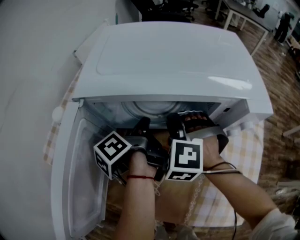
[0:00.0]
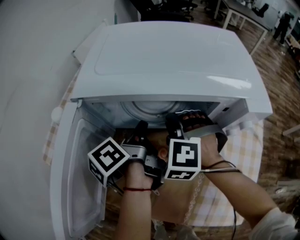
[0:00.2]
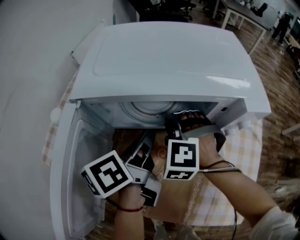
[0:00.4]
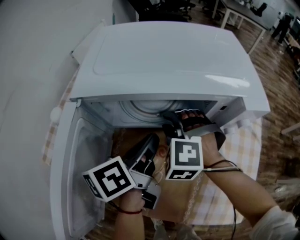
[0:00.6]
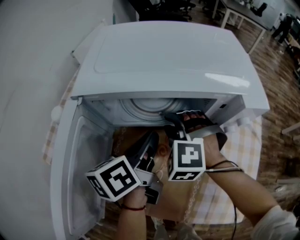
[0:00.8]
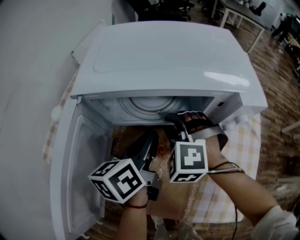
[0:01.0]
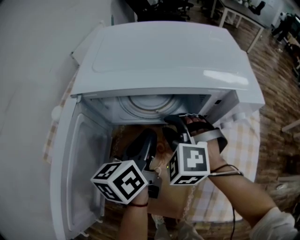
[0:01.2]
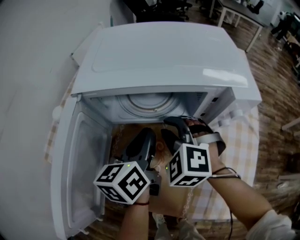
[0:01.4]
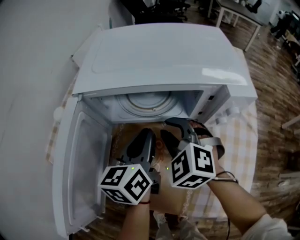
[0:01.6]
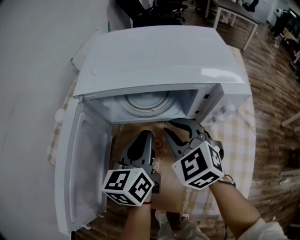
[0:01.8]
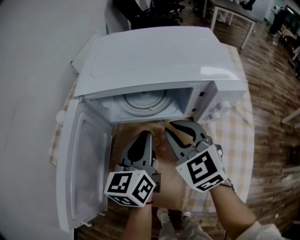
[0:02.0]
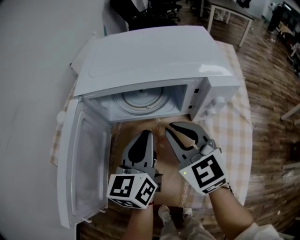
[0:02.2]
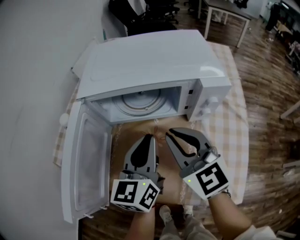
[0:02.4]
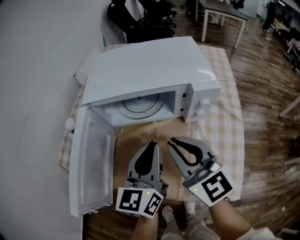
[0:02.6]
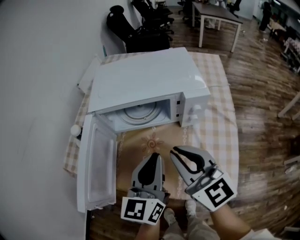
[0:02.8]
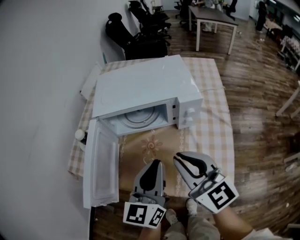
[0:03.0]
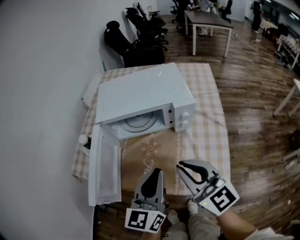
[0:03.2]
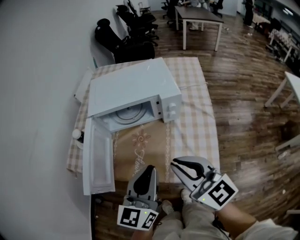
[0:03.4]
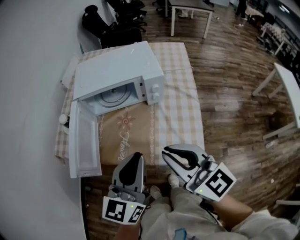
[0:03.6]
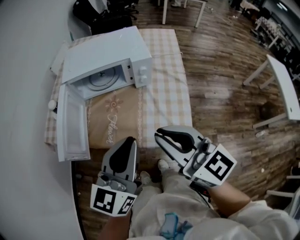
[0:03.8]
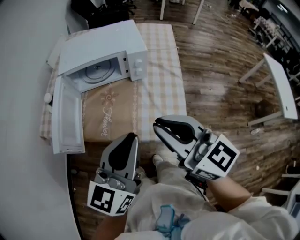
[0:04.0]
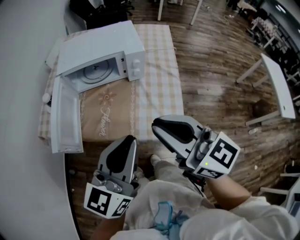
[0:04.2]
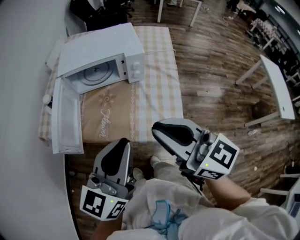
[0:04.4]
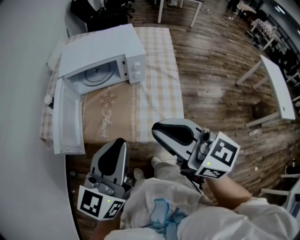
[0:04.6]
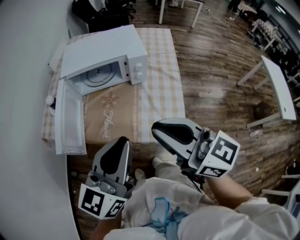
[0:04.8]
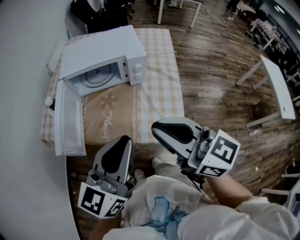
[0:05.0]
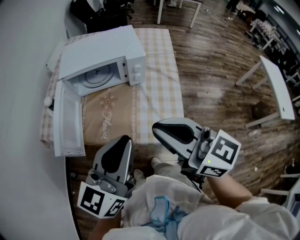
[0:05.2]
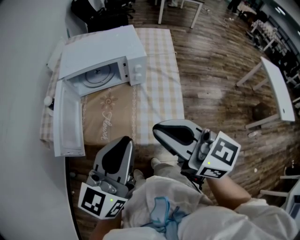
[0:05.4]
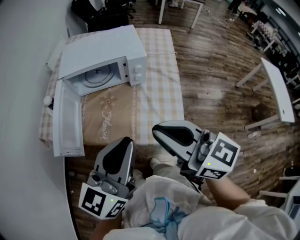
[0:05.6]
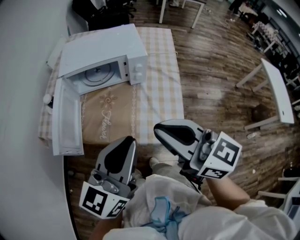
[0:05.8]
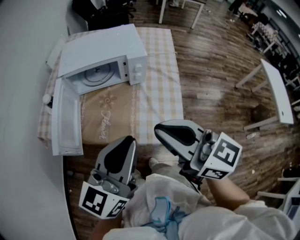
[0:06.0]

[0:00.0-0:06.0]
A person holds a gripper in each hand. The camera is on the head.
0:00.0 to 0:01.6: The right gripper shifts by approximately 5 cm, and changes its angle by some 30 degrees.
0:01.6 to 0:03.0: The right gripper travels upward by some 20 cm, and angles its fingers upward, by approximately 40 degrees.
0:03.0 to 0:04.4: The right gripper changes place by about 20 cm.

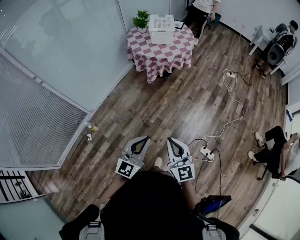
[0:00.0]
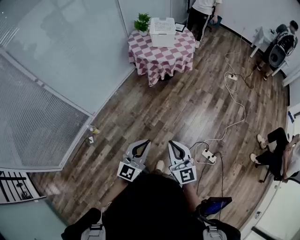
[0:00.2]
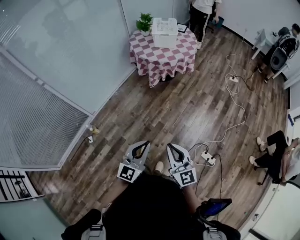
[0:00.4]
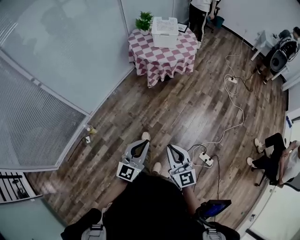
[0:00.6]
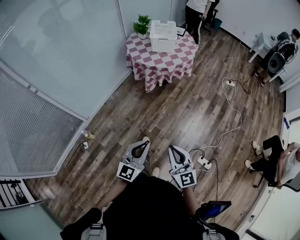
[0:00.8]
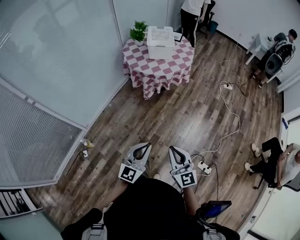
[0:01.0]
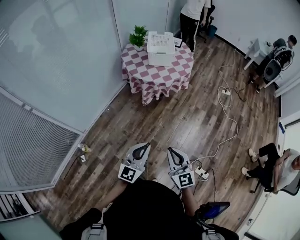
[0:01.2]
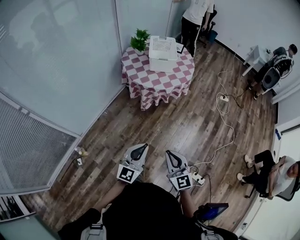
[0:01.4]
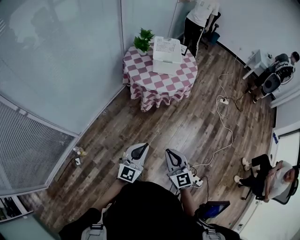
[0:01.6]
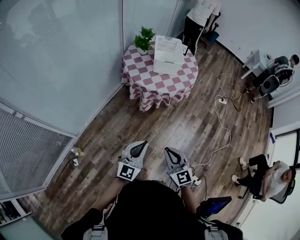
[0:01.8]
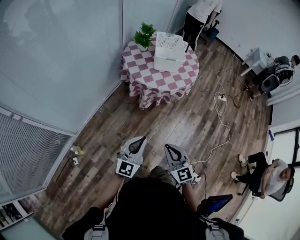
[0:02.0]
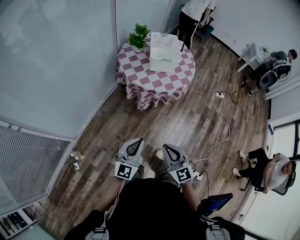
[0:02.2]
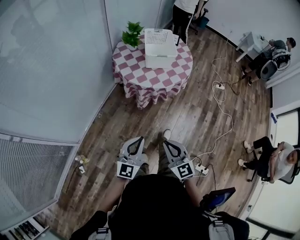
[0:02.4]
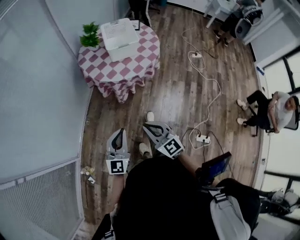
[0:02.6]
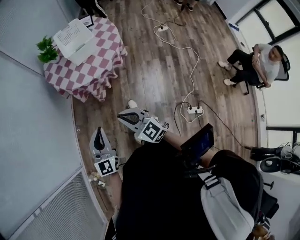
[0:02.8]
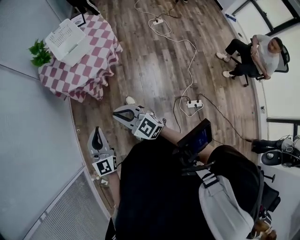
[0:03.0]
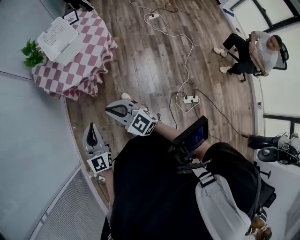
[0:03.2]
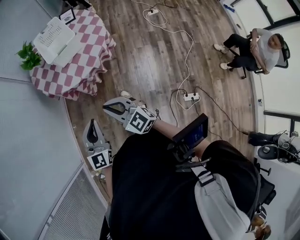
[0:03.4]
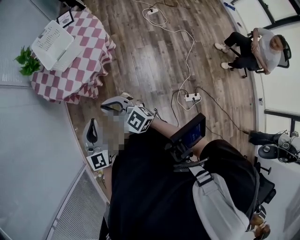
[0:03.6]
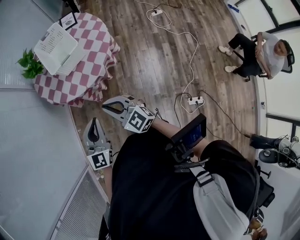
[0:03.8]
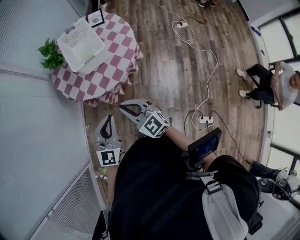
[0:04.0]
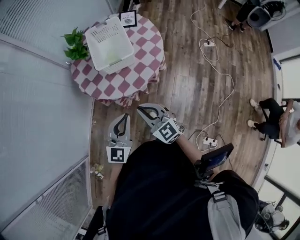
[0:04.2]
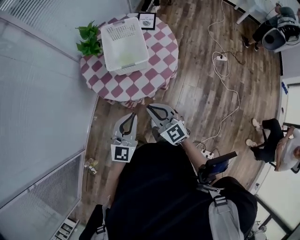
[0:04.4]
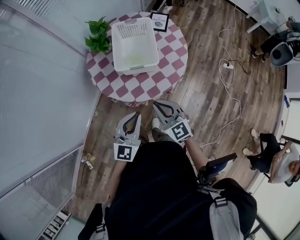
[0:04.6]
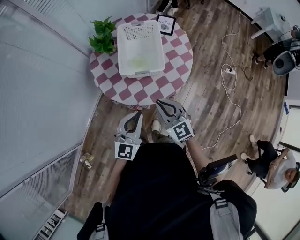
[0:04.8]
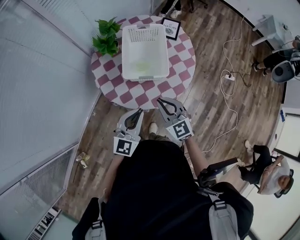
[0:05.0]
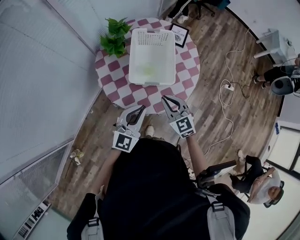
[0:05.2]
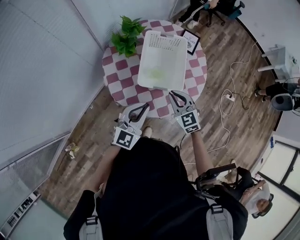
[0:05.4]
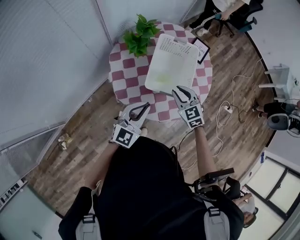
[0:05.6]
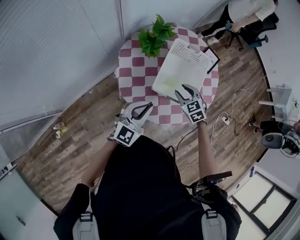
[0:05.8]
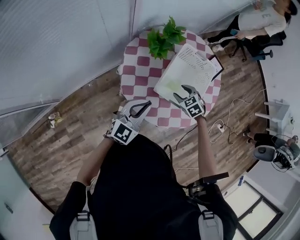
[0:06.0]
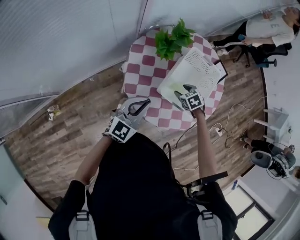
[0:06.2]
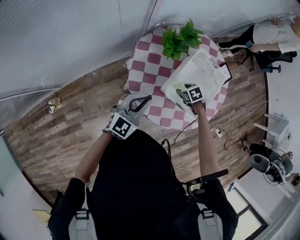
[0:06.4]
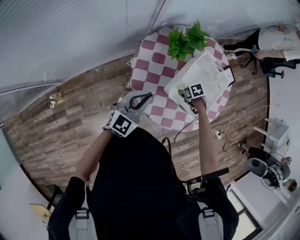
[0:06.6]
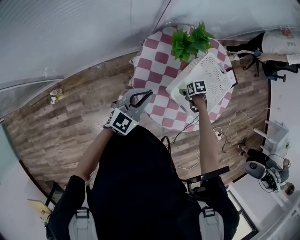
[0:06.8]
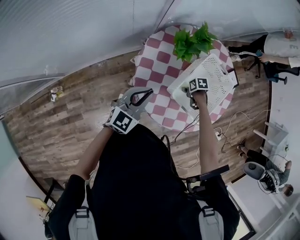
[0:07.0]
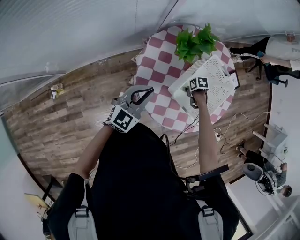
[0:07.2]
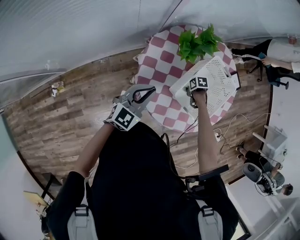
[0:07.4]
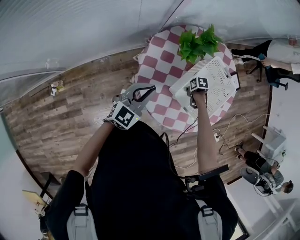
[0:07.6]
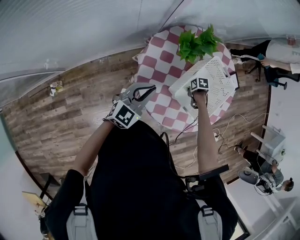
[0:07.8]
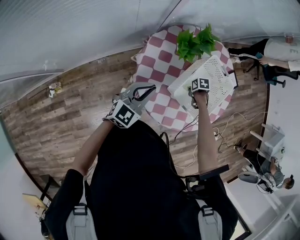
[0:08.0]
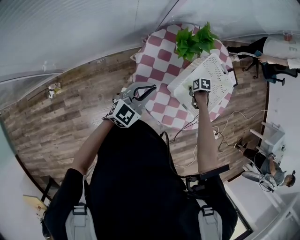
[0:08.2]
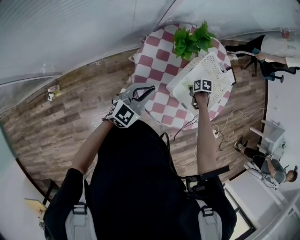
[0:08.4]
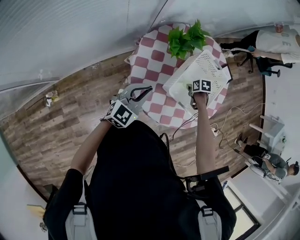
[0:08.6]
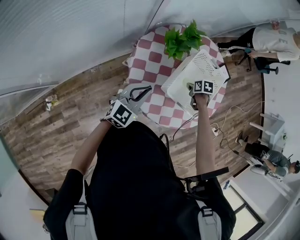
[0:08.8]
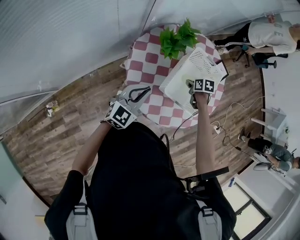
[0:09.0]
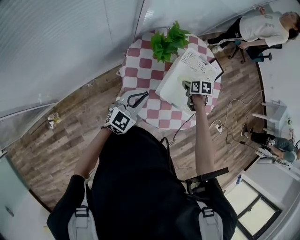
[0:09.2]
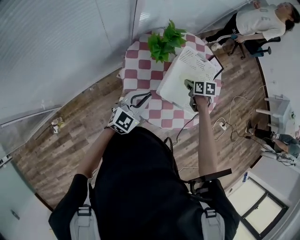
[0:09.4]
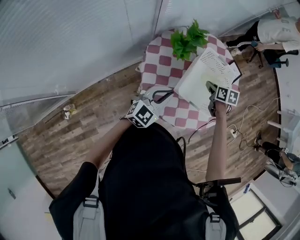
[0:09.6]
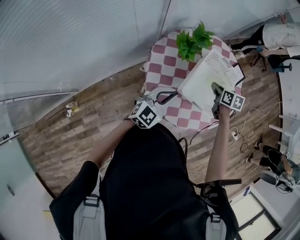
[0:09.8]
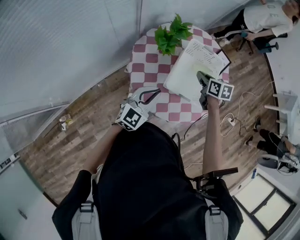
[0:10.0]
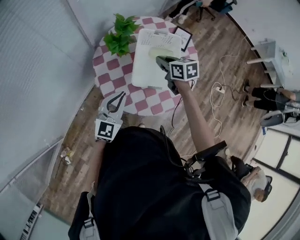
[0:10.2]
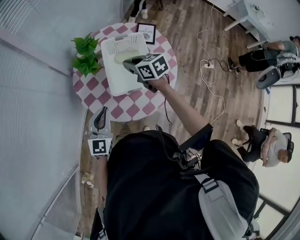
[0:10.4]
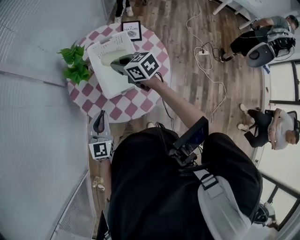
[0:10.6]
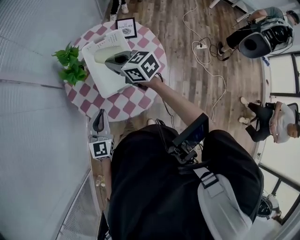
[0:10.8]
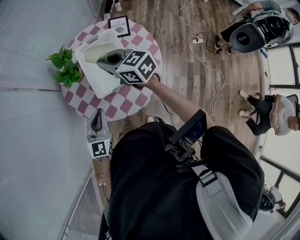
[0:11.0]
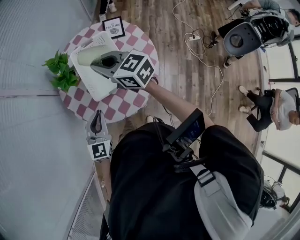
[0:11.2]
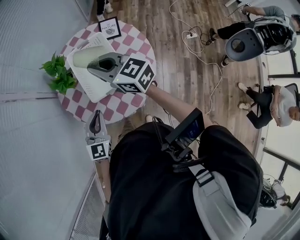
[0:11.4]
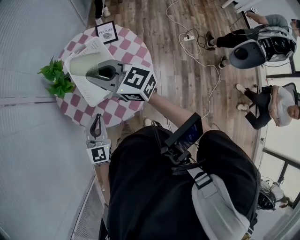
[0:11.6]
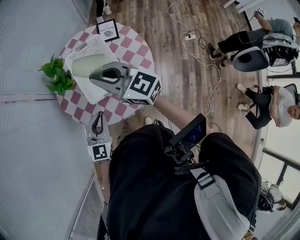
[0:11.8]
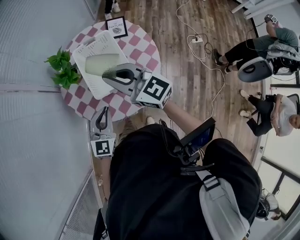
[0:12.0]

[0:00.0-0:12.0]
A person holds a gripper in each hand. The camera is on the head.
0:00.0 to 0:01.6: Both grippers travel together forward, approximately 30 cm.
0:01.6 to 0:03.0: The two grippers go about 15 cm forward.
0:03.0 to 0:04.4: The left gripper heads forward and to the right, covering roughly 30 cm; the right gripper is displaced forward by roughly 30 cm.
0:04.4 to 0:06.0: The right gripper moves forward and downward, approximately 35 cm, angles its fingers downward, by some 50 degrees, and opens its fingers. The left gripper travels forward and to the left by roughly 25 cm.
0:06.0 to 0:07.6: The right gripper travels downward by approximately 15 cm, changes its angle by about 50 degrees, and closes. The left gripper ends up about 10 cm from where it was.
0:07.6 to 0:09.0: The right gripper goes some 10 cm upward, and changes its angle by about 30 degrees.
0:09.0 to 0:10.4: The right gripper moves upward, approximately 20 cm, and tips its fingers upward by about 30 degrees. The left gripper is displaced to the right by approximately 5 cm.
0:10.4 to 0:12.0: The right gripper moves upward and backward, approximately 20 cm, and tips its fingers upward by about 30 degrees, while the left gripper goes about 10 cm to the right.

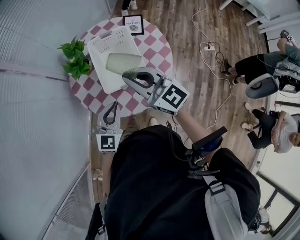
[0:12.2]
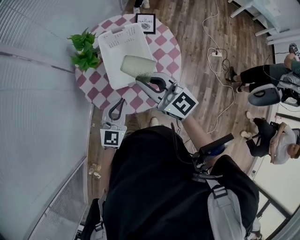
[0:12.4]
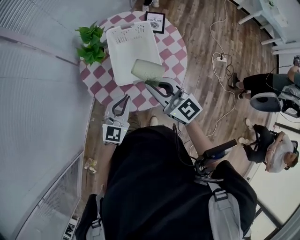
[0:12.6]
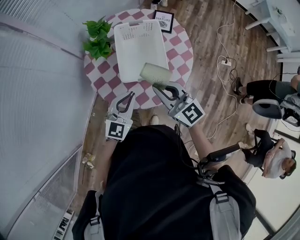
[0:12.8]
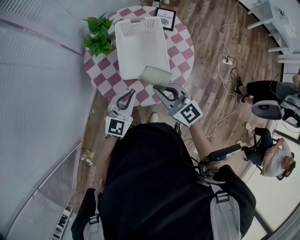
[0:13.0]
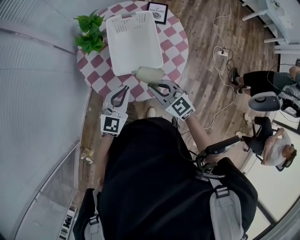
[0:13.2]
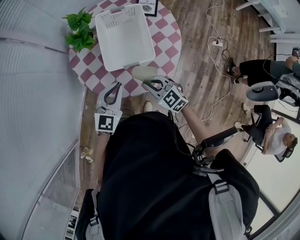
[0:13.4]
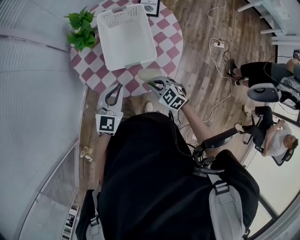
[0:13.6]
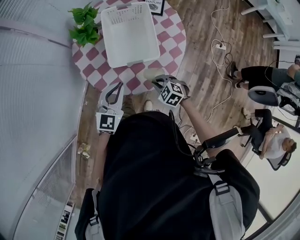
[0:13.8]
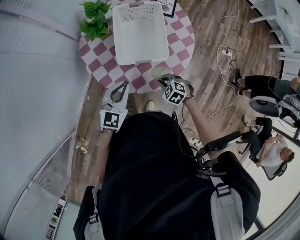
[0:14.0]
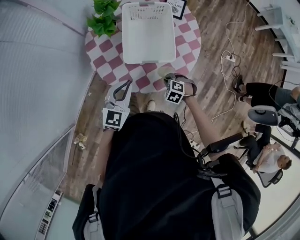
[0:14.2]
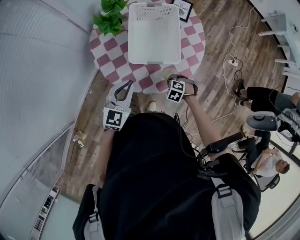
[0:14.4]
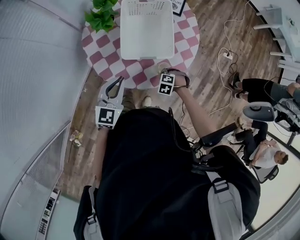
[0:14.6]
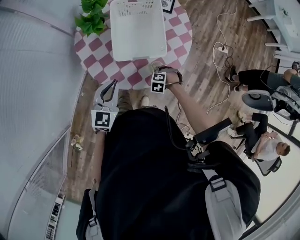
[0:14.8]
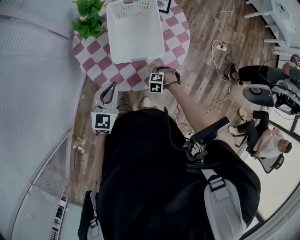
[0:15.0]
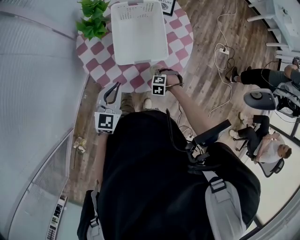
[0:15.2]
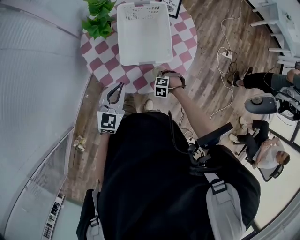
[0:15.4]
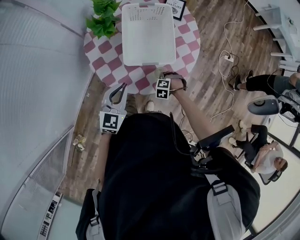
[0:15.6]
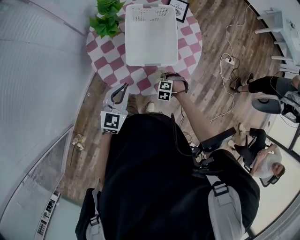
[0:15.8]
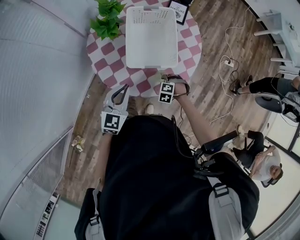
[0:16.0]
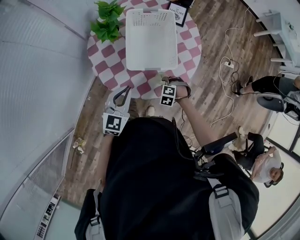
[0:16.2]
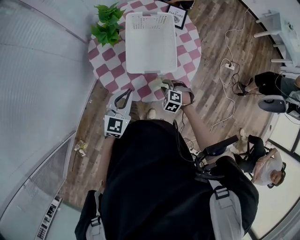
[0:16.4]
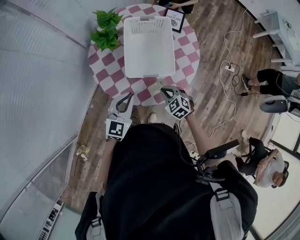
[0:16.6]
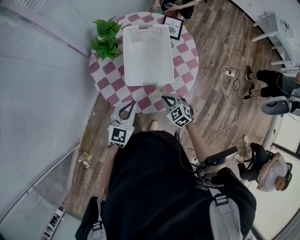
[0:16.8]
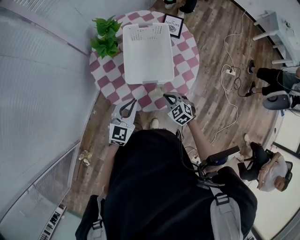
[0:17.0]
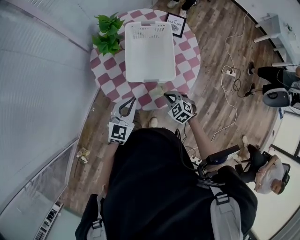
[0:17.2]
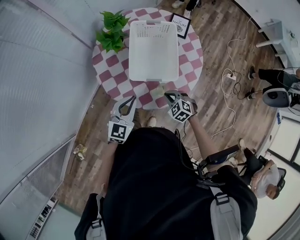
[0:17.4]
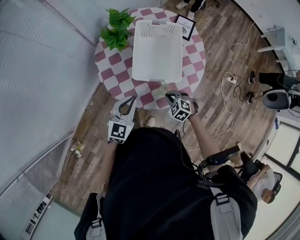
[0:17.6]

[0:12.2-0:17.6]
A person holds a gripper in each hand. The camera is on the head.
0:12.2 to 0:13.6: The right gripper heads downward, covering approximately 30 cm, and points its fingers some 40 degrees further downward.
0:13.6 to 0:15.0: The left gripper shifts by approximately 5 cm. The right gripper moves downward, some 15 cm, and angles its fingers downward, by about 40 degrees.
0:15.0 to 0:16.2: The right gripper opens.
0:16.2 to 0:17.6: The right gripper heads upward, covering roughly 5 cm, swivels approximately 20 degrees, and closes up.
